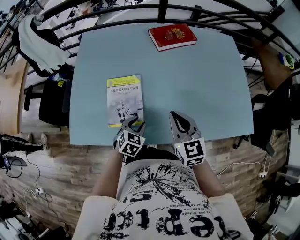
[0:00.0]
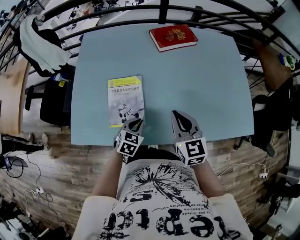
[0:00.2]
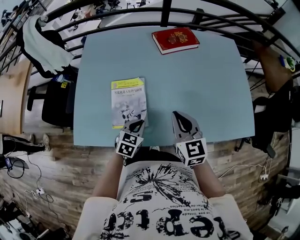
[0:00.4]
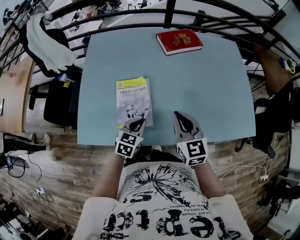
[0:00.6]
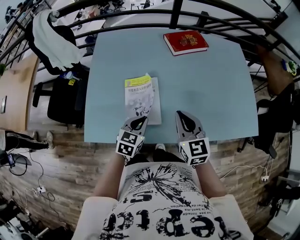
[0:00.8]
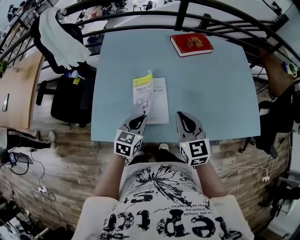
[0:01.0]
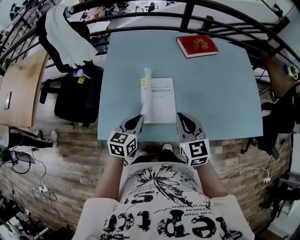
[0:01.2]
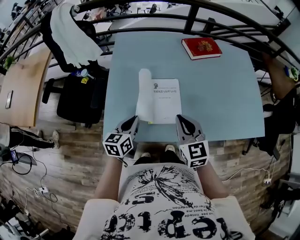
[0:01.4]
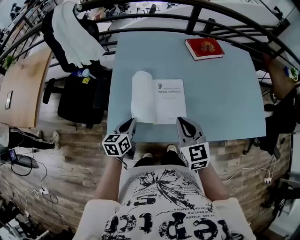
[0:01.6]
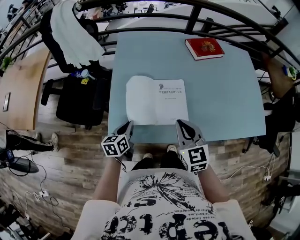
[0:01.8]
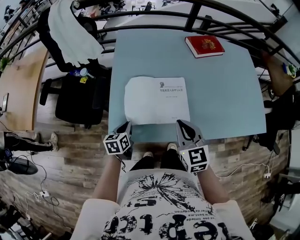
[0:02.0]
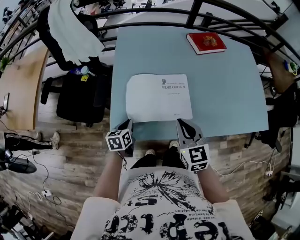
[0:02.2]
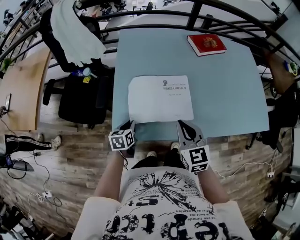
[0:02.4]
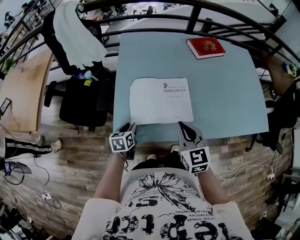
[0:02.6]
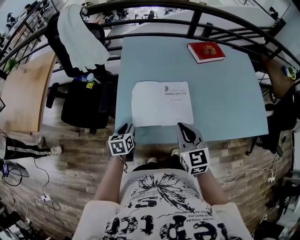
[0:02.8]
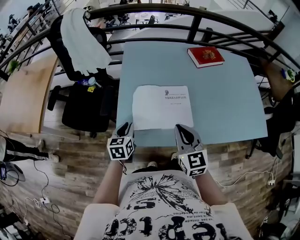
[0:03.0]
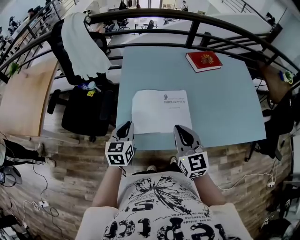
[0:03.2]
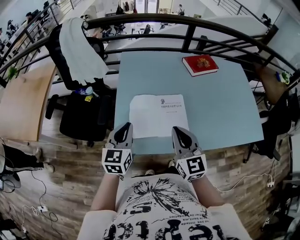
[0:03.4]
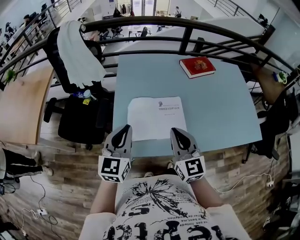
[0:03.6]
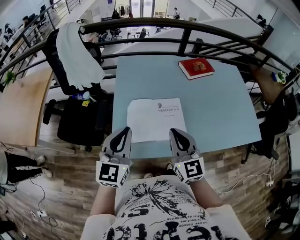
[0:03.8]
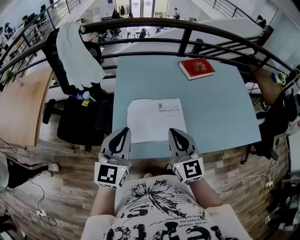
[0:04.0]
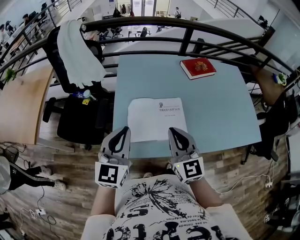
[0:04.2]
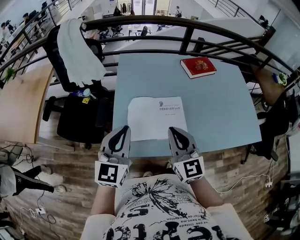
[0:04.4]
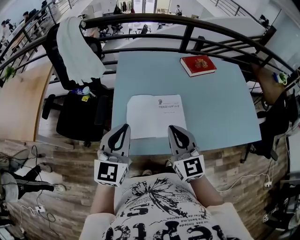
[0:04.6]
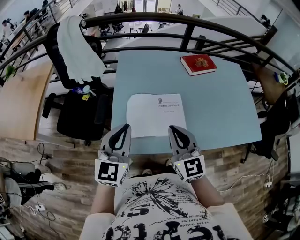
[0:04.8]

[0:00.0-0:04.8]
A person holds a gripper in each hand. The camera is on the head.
0.0 to 1.6 s: Both grippers move to the left, some 25 cm. The left gripper twists some 40 degrees counterclockwise, seen from behind, and closes its fingers.
1.6 to 3.2 s: The left gripper goes roughly 10 cm upward and to the left, and opens, then closes once more. Meanwhile the right gripper shifts approximately 5 cm to the left.
3.2 to 4.8 s: The left gripper is displaced upward by approximately 15 cm, and changes its angle by about 30 degrees.

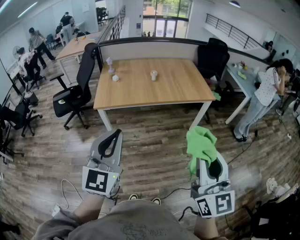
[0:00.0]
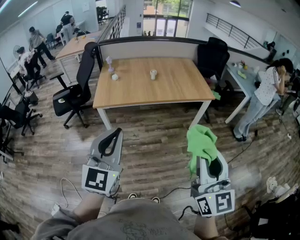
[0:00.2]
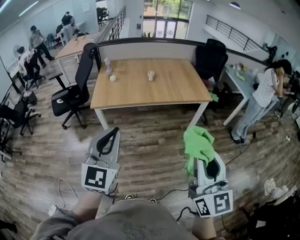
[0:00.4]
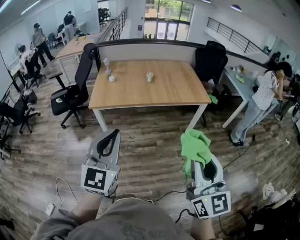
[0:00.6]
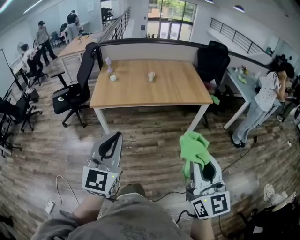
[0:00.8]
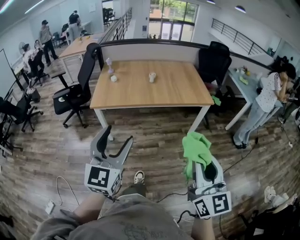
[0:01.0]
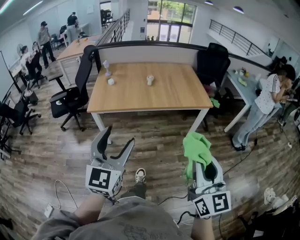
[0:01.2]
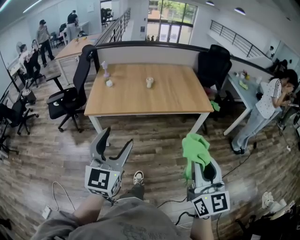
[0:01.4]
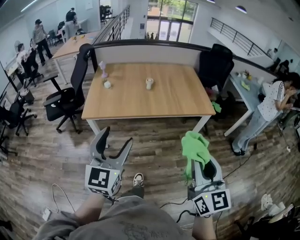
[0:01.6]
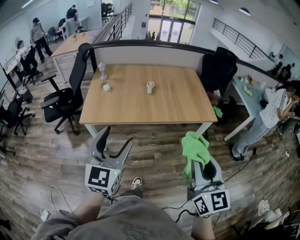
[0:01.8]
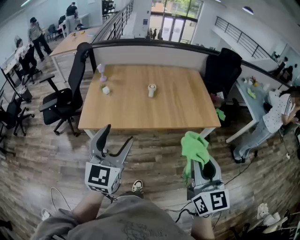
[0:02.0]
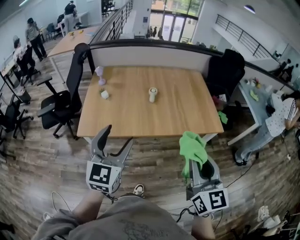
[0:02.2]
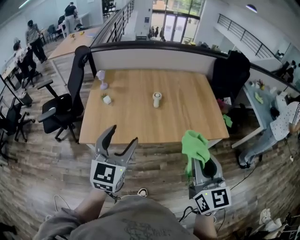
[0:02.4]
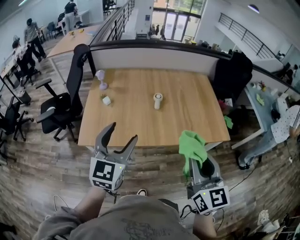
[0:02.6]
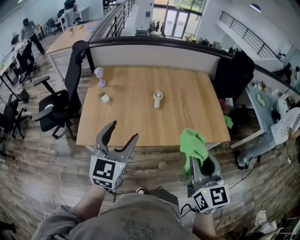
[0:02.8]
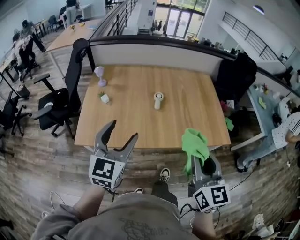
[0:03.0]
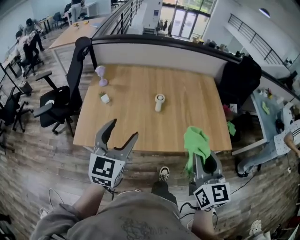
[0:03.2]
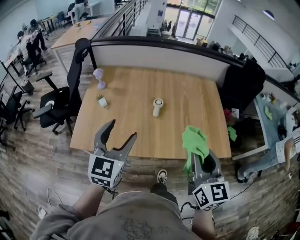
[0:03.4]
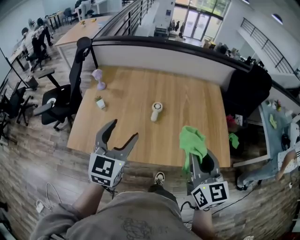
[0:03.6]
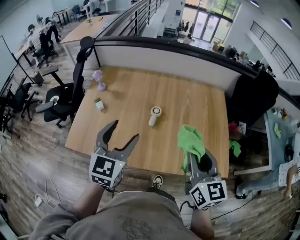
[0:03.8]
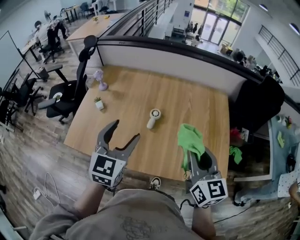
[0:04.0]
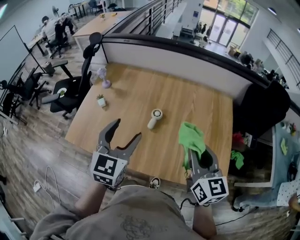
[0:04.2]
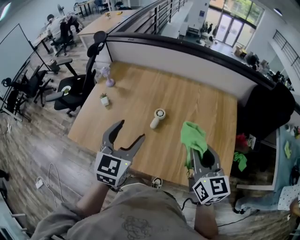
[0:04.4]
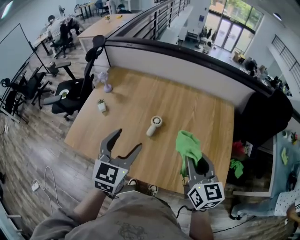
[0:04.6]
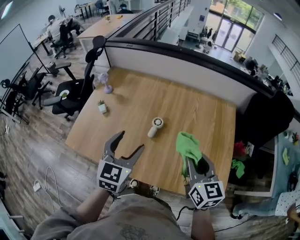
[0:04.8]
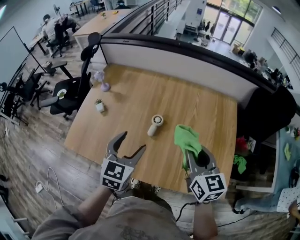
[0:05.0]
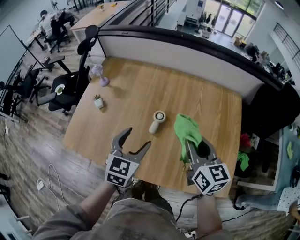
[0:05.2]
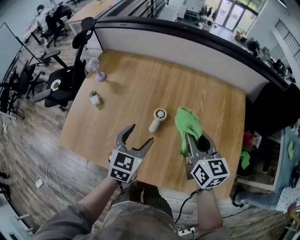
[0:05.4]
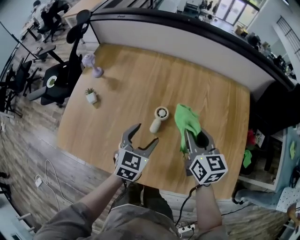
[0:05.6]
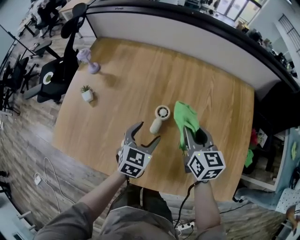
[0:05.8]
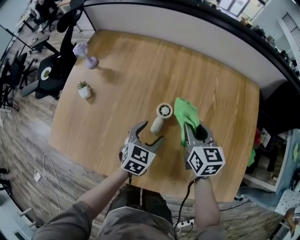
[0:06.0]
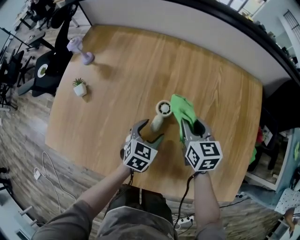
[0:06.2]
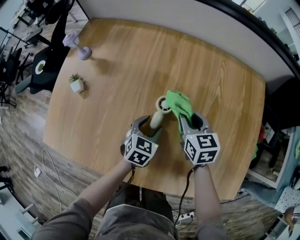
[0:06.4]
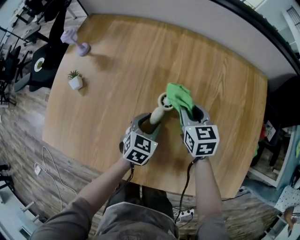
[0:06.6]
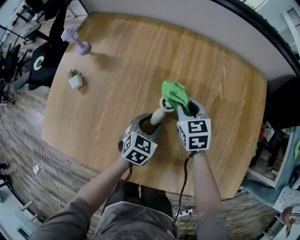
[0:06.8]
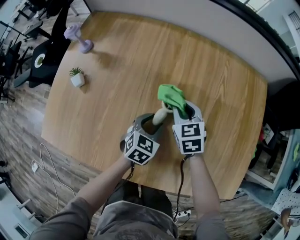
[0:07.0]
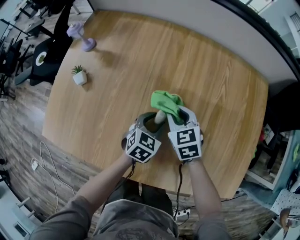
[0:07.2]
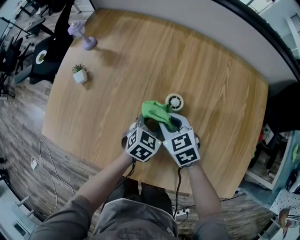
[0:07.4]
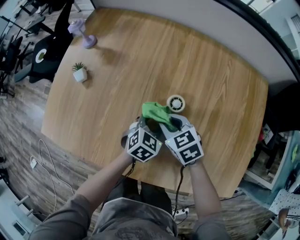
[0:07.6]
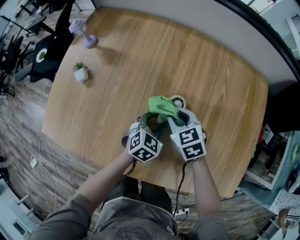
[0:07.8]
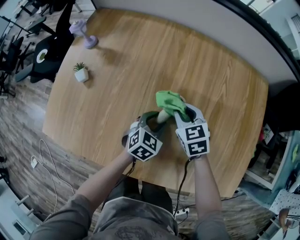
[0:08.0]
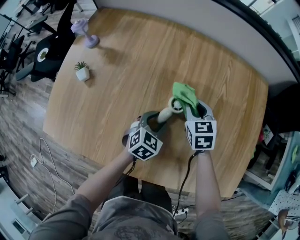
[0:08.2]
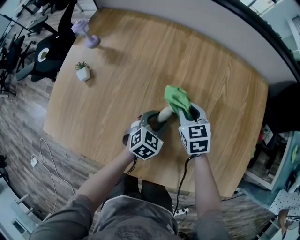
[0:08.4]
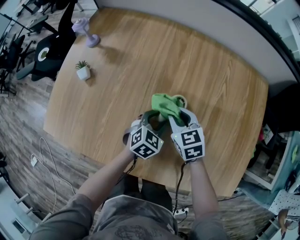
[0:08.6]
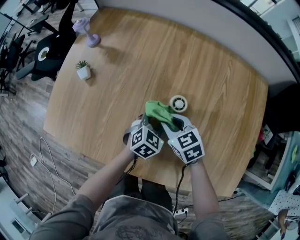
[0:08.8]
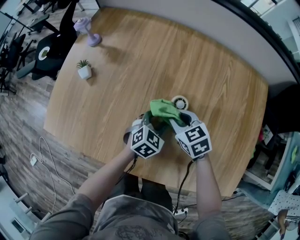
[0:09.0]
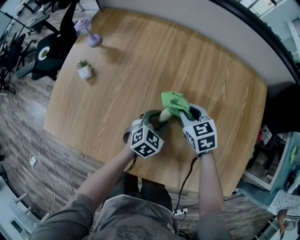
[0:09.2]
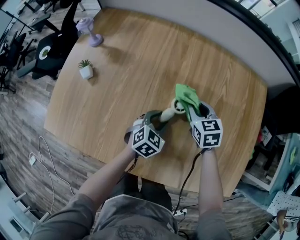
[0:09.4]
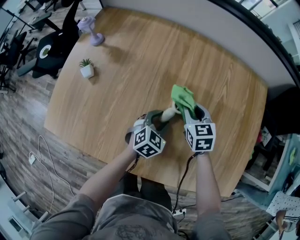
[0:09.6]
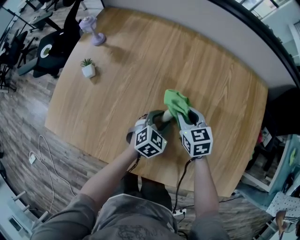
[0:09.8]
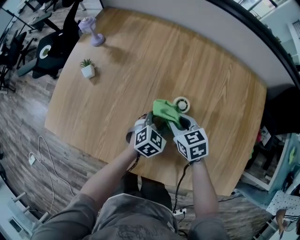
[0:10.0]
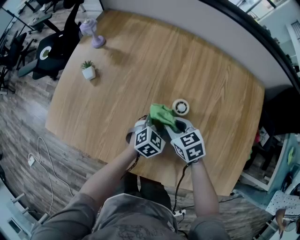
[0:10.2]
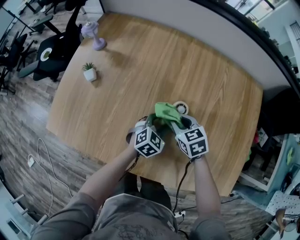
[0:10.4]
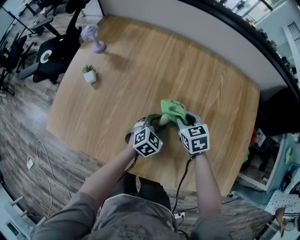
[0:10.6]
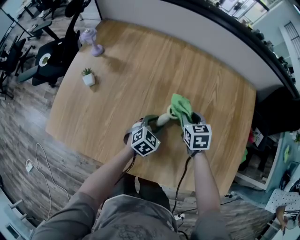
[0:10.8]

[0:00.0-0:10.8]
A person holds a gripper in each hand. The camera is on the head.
0.0 to 1.6 s: The two grippers go approximately 15 cm forward. The left gripper opens.
1.6 to 3.0 s: The grippers both shift forward by some 35 cm.
3.0 to 4.6 s: Both grippers travel together forward and to the right, some 30 cm. The right gripper changes its angle by some 20 degrees.
4.6 to 6.2 s: Both grippers travel together downward and forward, roughly 35 cm. The left gripper turns by approximately 30 degrees.
6.2 to 7.8 s: The right gripper travels to the left and downward by about 10 cm, and rotates about 30 degrees, while the left gripper closes.
7.8 to 9.2 s: The right gripper goes forward and backward, roughly 10 cm each way, reversing 2 times.
9.2 to 10.8 s: The right gripper goes backward and returns, about 5 cm each way.

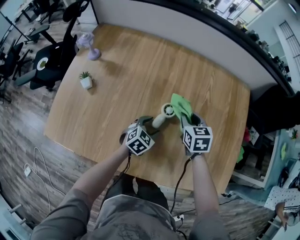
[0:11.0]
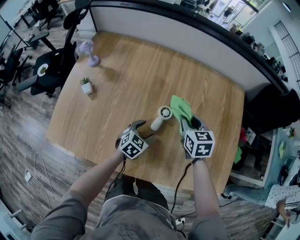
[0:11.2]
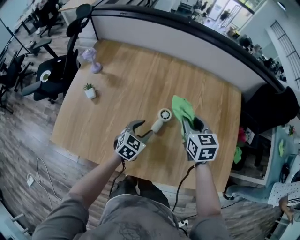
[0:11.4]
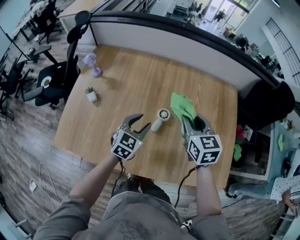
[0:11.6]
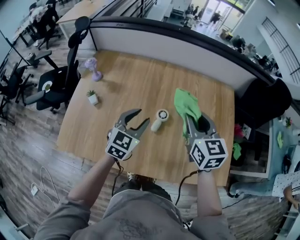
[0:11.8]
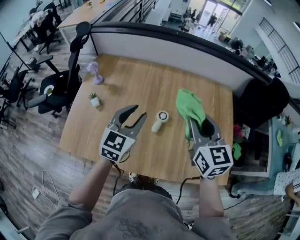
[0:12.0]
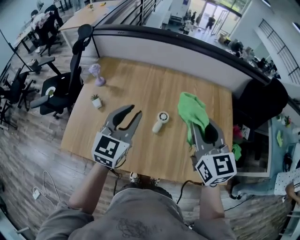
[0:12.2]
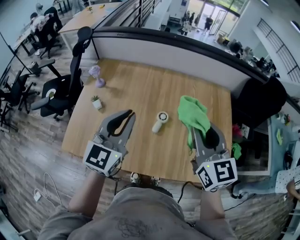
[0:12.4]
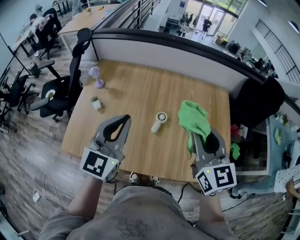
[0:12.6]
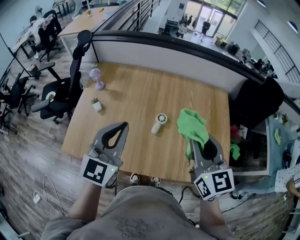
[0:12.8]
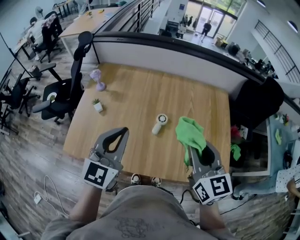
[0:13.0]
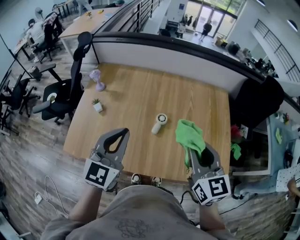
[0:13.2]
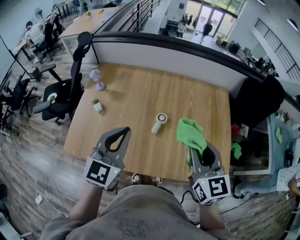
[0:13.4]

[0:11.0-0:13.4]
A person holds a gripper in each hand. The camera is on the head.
11.0 to 12.2 s: The right gripper heads upward and backward, covering approximately 35 cm, and tilts its fingers about 30 degrees upward. The left gripper travels upward by approximately 40 cm, angles its fingers upward, by about 40 degrees, and closes its fingers.
12.2 to 13.4 s: Both grippers move backward, about 10 cm.

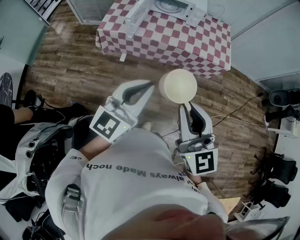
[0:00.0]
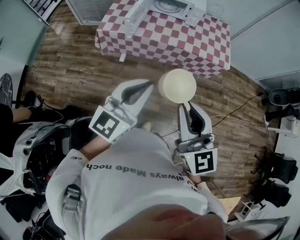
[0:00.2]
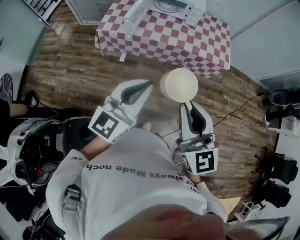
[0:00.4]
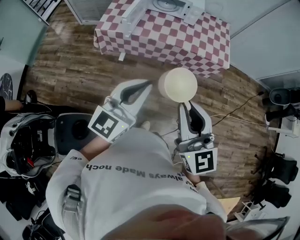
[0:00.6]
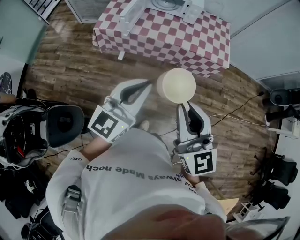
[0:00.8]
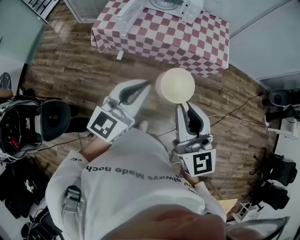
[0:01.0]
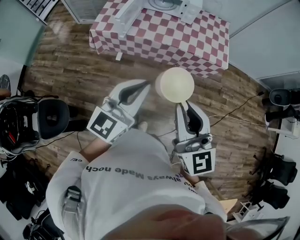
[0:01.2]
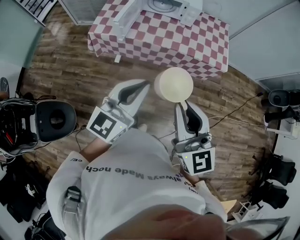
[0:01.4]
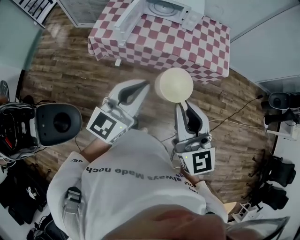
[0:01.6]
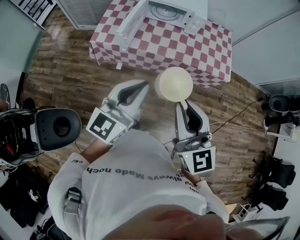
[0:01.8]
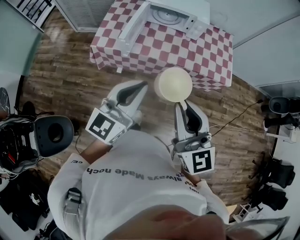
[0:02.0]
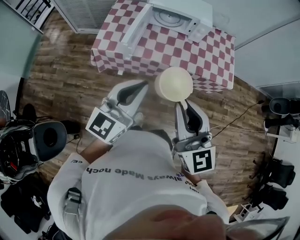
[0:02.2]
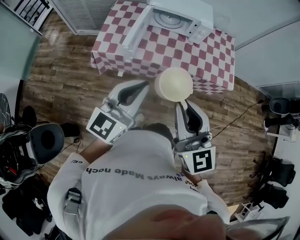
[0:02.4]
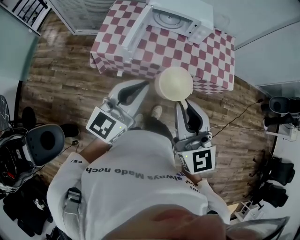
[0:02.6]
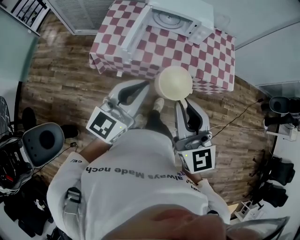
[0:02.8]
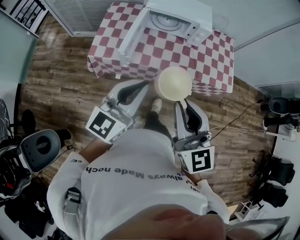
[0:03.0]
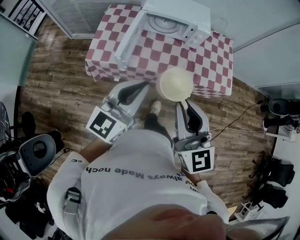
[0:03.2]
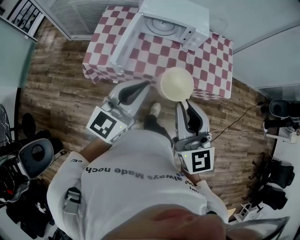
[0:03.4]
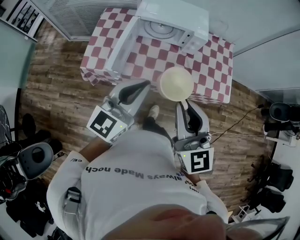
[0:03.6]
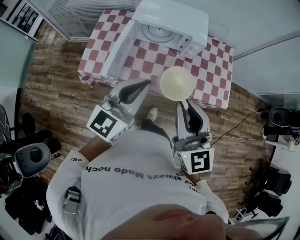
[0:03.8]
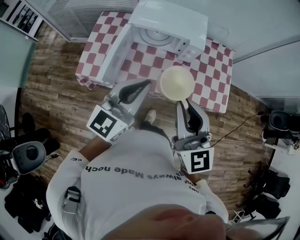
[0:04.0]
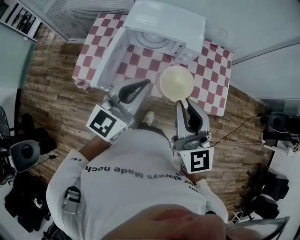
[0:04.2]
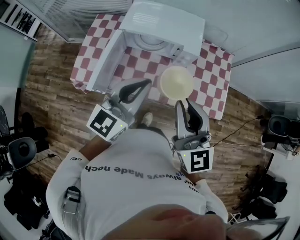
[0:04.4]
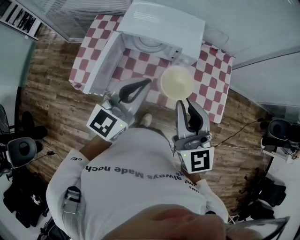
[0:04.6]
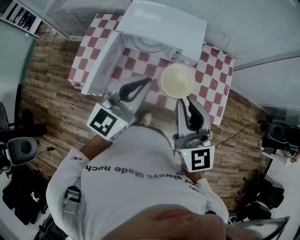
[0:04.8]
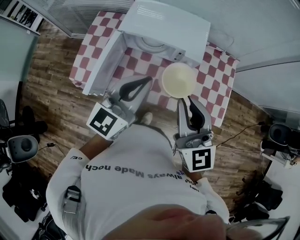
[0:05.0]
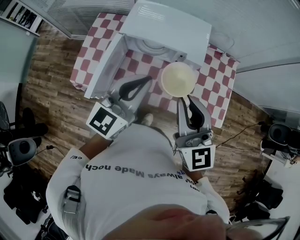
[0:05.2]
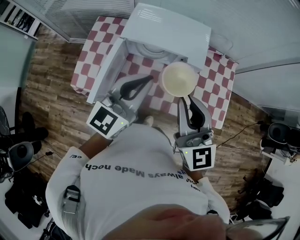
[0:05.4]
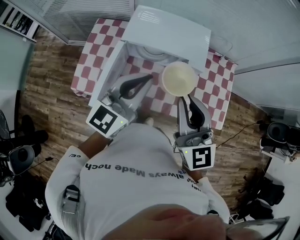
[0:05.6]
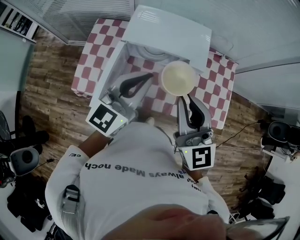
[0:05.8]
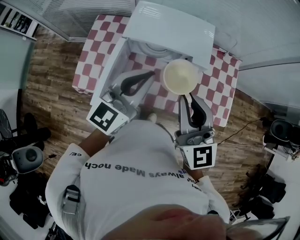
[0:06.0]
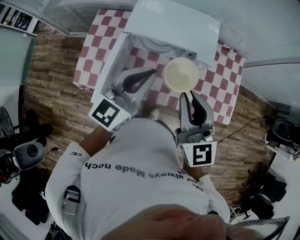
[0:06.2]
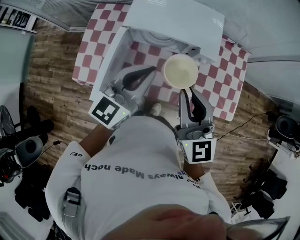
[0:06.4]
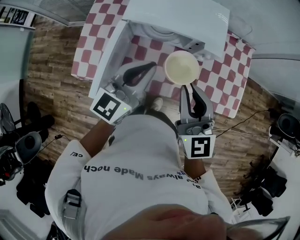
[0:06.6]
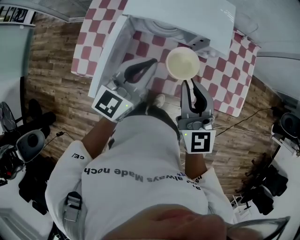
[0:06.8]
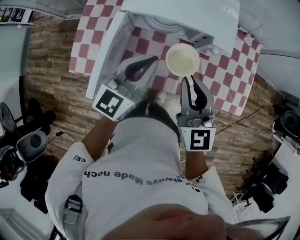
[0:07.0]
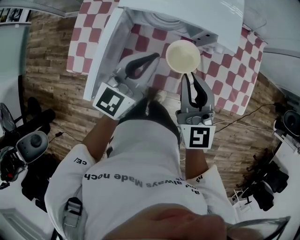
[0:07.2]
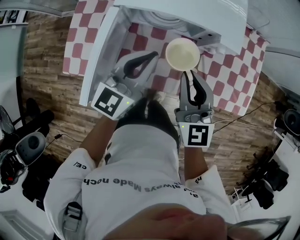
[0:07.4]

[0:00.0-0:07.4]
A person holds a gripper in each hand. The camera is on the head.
0.0 to 1.4 s: The grippers both shift forward by roughly 5 cm.
1.4 to 3.0 s: Both grippers move forward and to the left, about 25 cm.
3.0 to 4.4 s: Both grippers travel together forward and to the right, some 30 cm.
4.4 to 6.0 s: Both grippers move forward, some 10 cm.
6.0 to 7.4 s: Both grippers travel together downward, some 20 cm.
